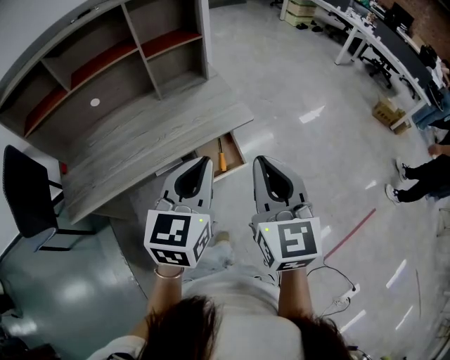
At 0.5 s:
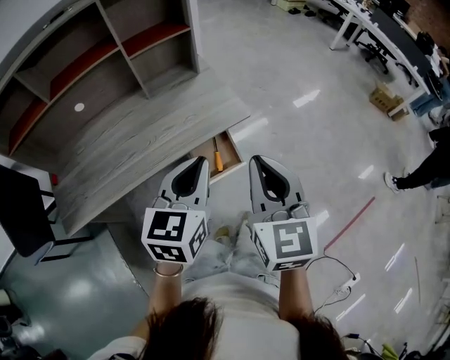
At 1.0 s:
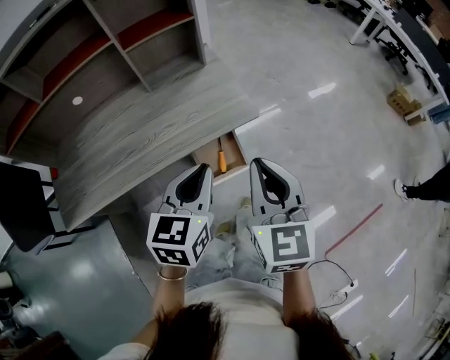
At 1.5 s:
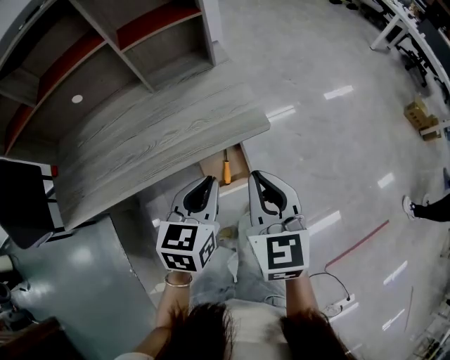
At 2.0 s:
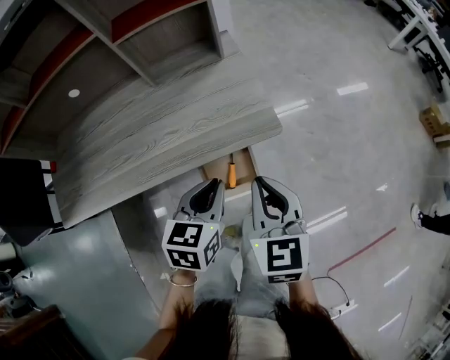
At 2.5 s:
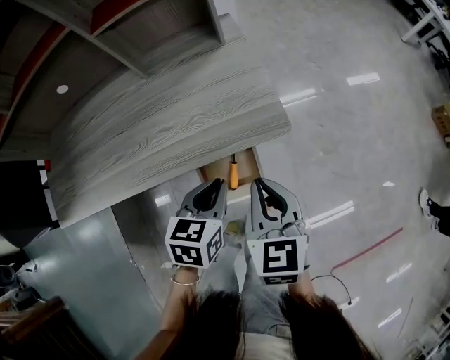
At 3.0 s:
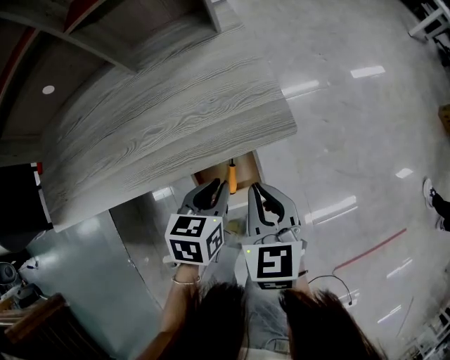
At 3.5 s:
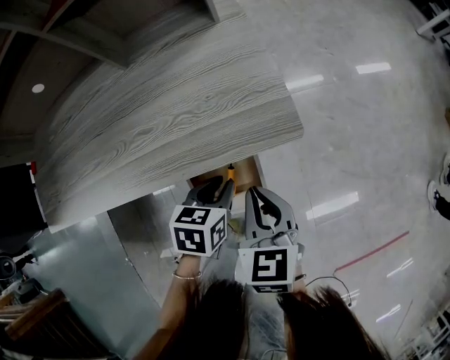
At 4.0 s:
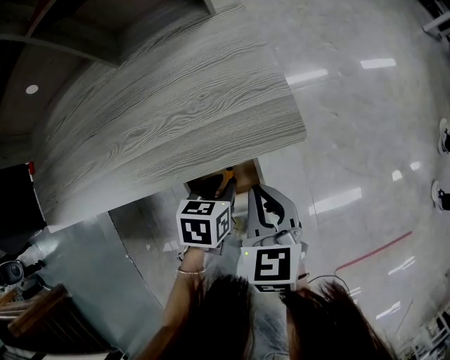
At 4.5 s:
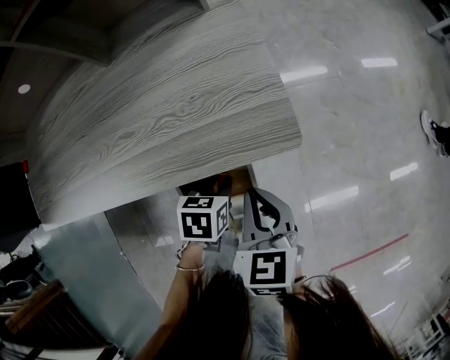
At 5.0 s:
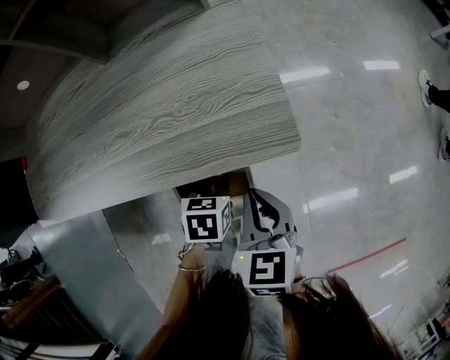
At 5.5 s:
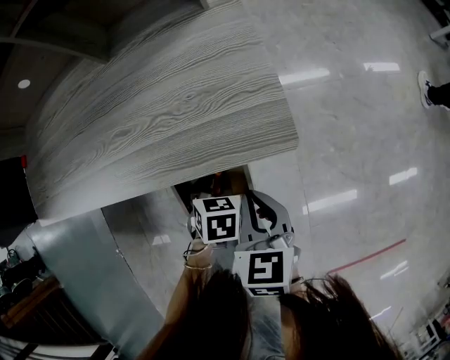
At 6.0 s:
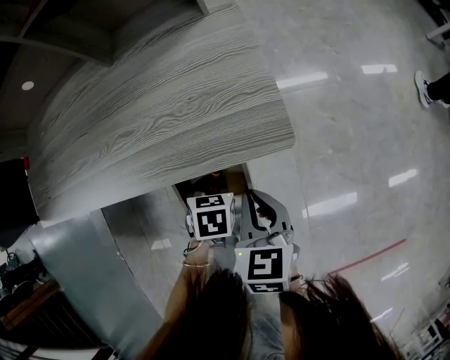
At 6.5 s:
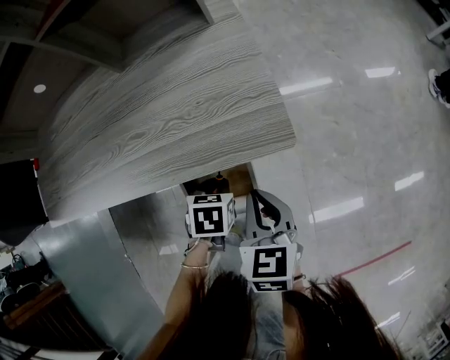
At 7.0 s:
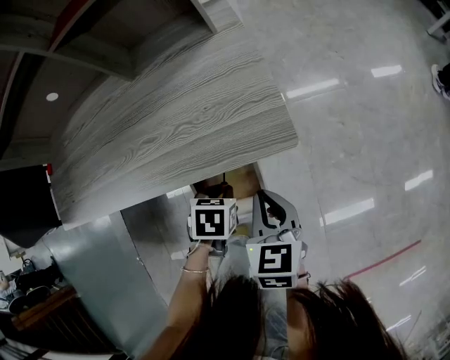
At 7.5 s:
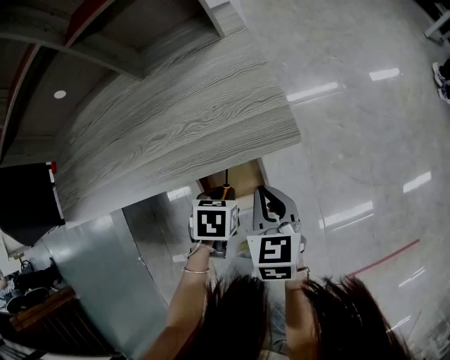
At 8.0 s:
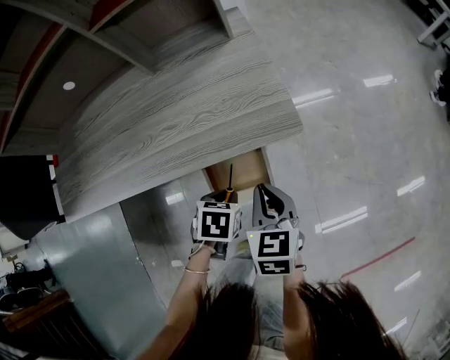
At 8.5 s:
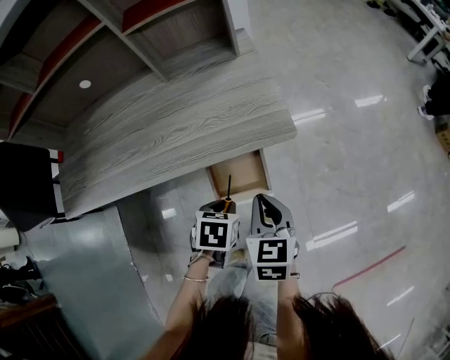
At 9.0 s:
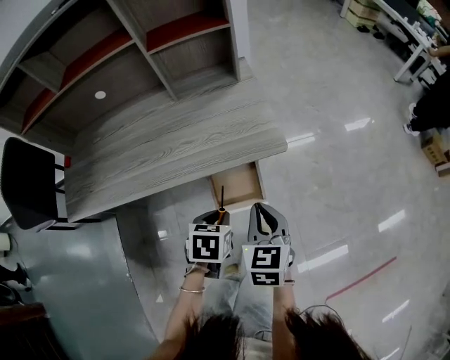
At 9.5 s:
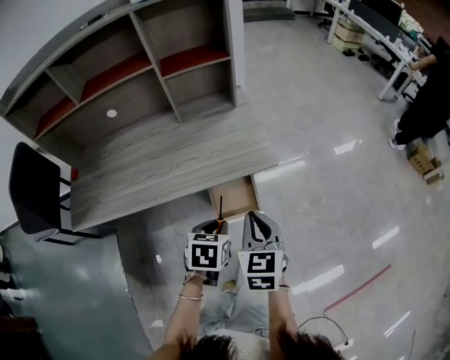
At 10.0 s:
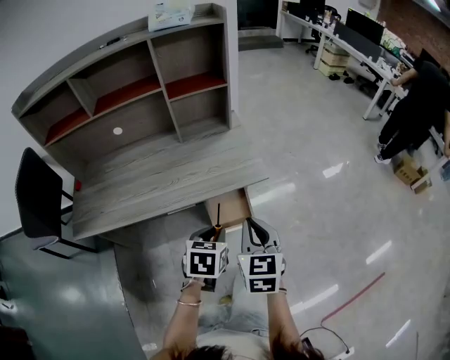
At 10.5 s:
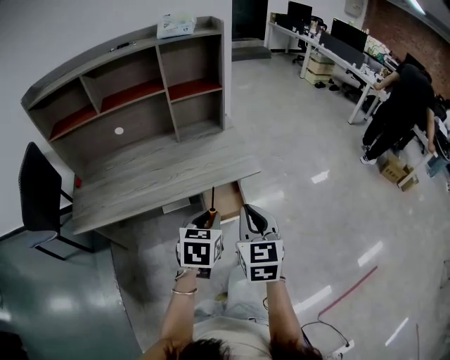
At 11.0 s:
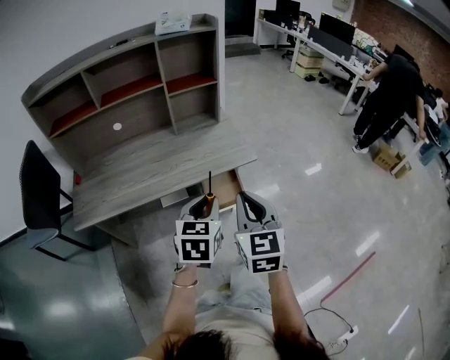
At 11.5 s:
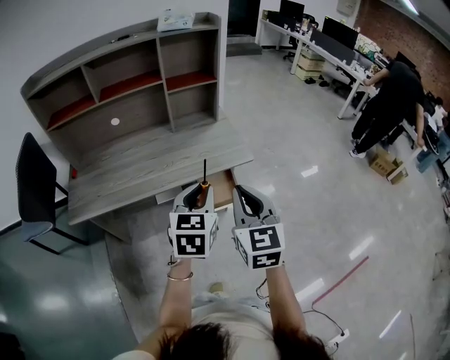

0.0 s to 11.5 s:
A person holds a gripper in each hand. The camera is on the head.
0.0 to 2.0 s: Both grippers travel together downward and forward, roughly 30 cm. The left gripper changes its angle by about 30 degrees, while the right gripper rotates about 20 degrees.
2.0 to 4.0 s: Both grippers move downward, roughly 20 cm. The left gripper rotates approximately 30 degrees, and opens.
6.0 to 7.5 s: The left gripper is displaced upward by roughly 5 cm.
7.5 to 9.5 s: The two grippers go some 20 cm upward and backward. The left gripper turns by about 20 degrees.
9.5 to 11.5 s: The right gripper heads upward and backward, covering approximately 20 cm; the left gripper shifts roughly 20 cm upward, and tilts its fingers about 30 degrees upward.

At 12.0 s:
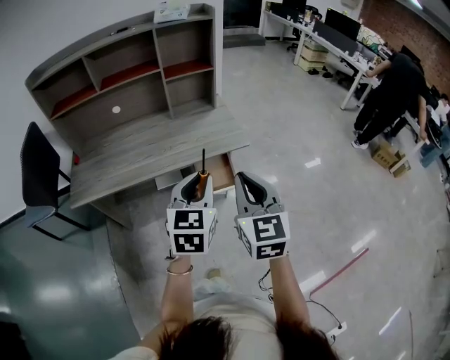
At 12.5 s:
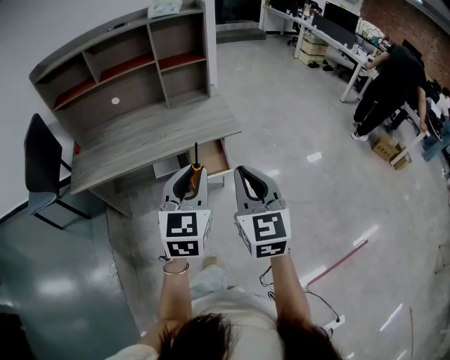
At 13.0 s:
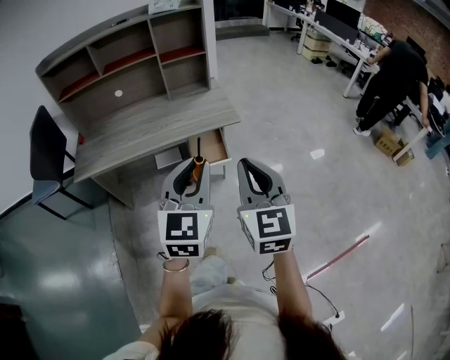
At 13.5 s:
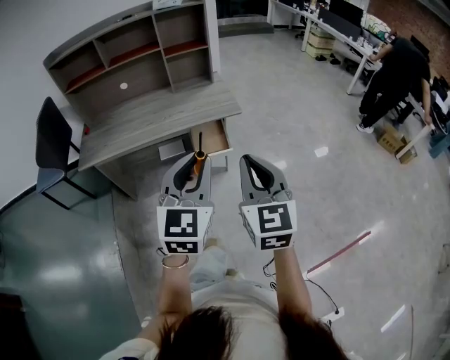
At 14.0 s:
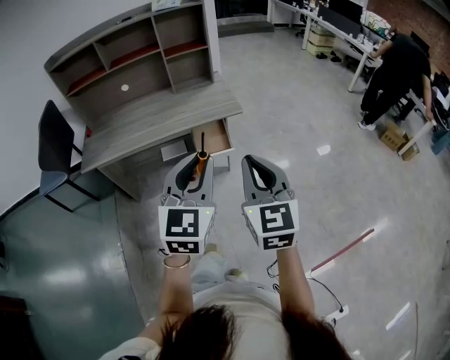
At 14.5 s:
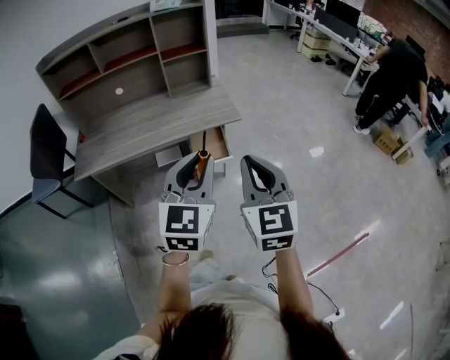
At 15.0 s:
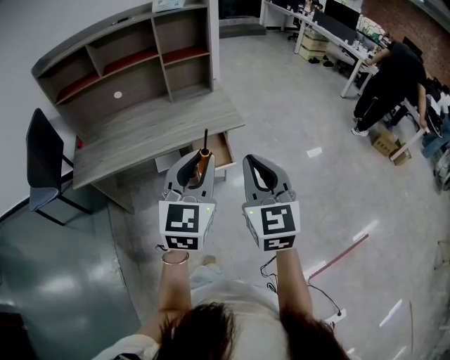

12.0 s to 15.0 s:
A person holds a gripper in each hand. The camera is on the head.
12.0 to 13.5 s: The left gripper shifts approximately 20 cm backward; the right gripper moves backward and to the right, roughly 20 cm.
13.5 to 15.0 s: The two grippers go approximately 10 cm forward.

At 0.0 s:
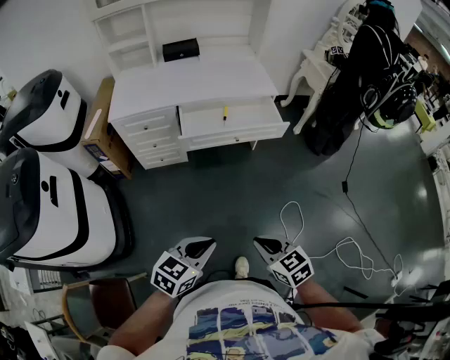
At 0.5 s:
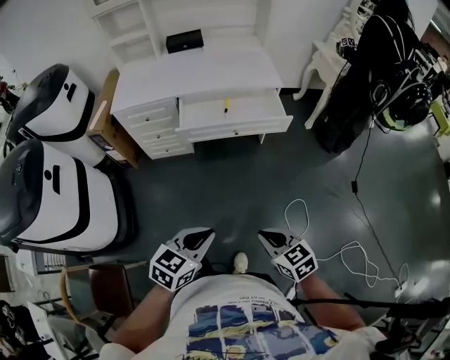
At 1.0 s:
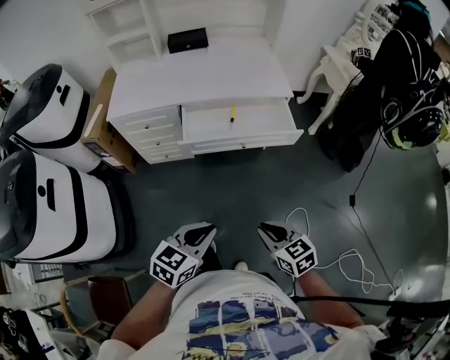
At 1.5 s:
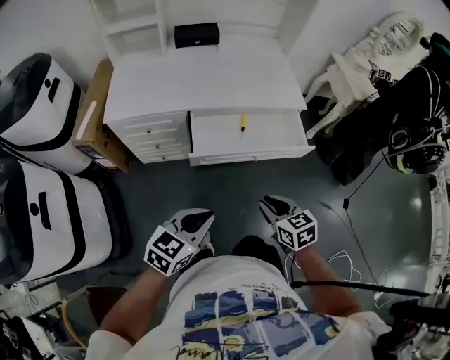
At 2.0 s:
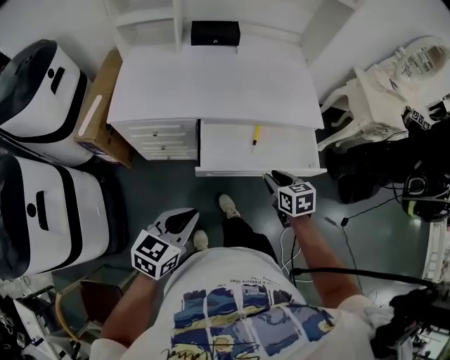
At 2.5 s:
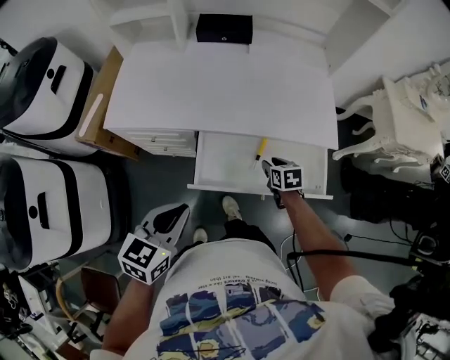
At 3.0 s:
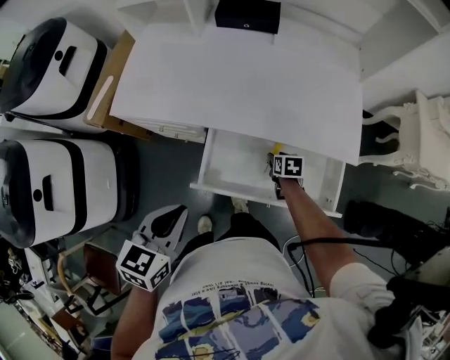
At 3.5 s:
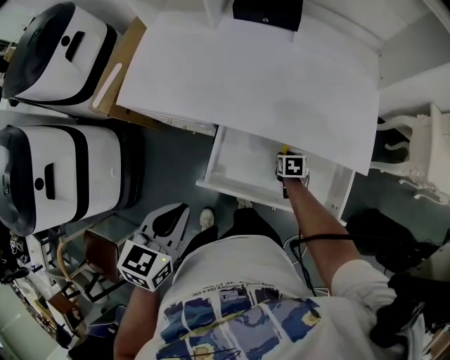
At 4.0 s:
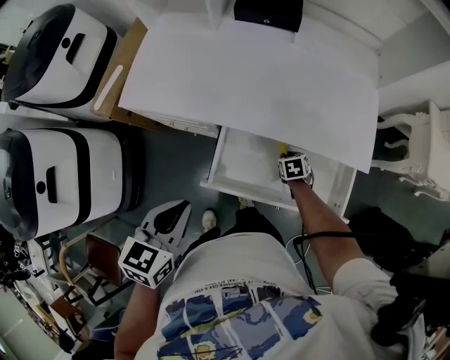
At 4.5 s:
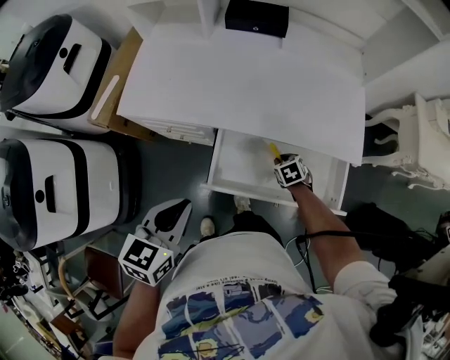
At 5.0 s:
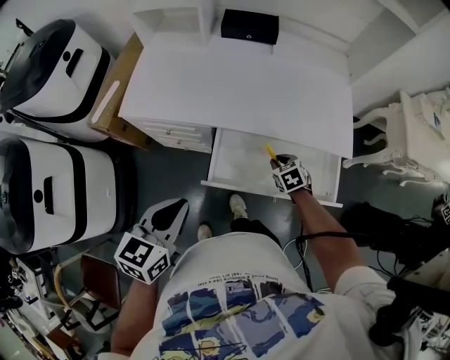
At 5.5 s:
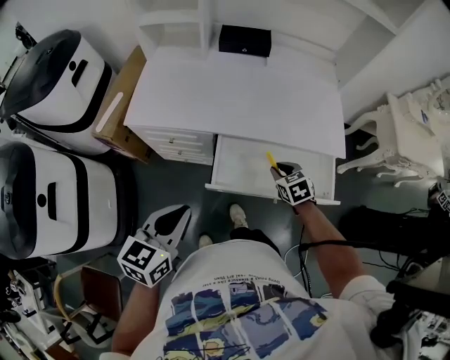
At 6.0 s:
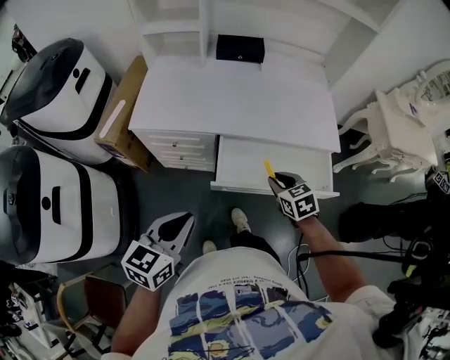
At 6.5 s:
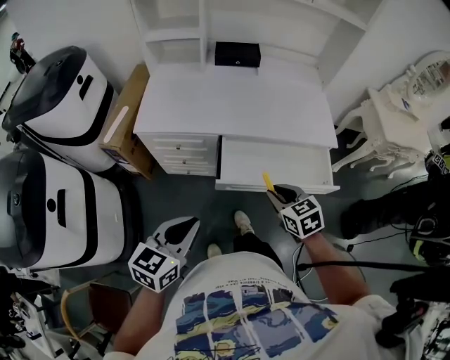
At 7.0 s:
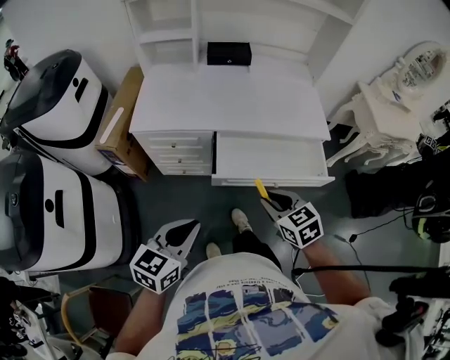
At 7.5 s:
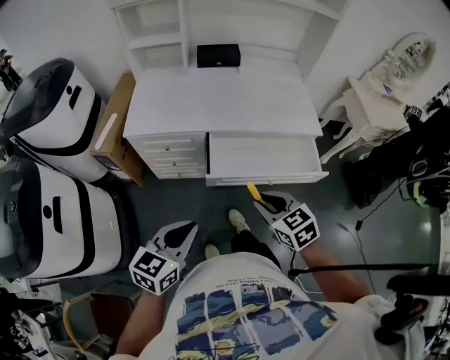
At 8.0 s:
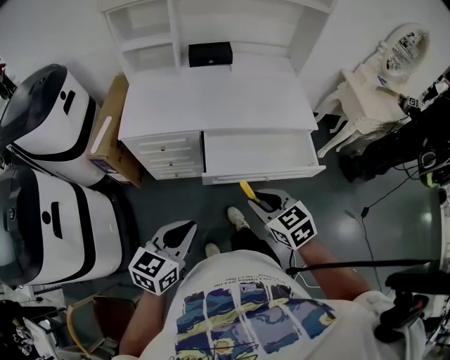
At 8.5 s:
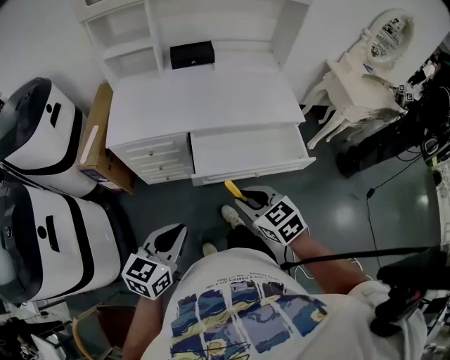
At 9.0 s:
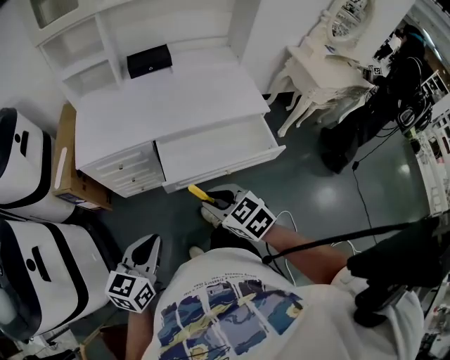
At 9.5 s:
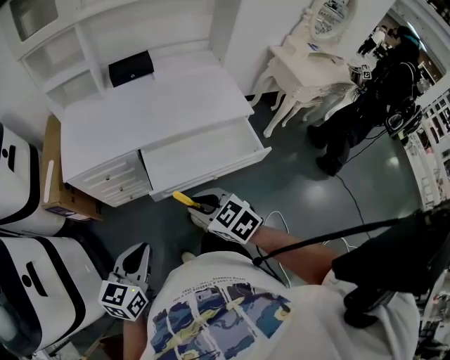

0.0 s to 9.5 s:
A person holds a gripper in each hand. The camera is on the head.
0.0 to 2.0 s: The right gripper travels forward by about 50 cm, and opens up. The left gripper shifts approximately 30 cm forward.
2.0 to 4.0 s: The right gripper goes approximately 30 cm downward and forward, and swivels approximately 30 degrees. The left gripper travels forward by approximately 15 cm, and swivels about 30 degrees.
4.0 to 5.5 s: The right gripper shifts approximately 20 cm upward. Meanwhile the left gripper is displaced backward by about 5 cm.
5.5 to 7.5 s: The right gripper goes some 25 cm backward and upward; the left gripper heads backward, covering some 10 cm.
7.5 to 9.5 s: The grippers make only small movements.

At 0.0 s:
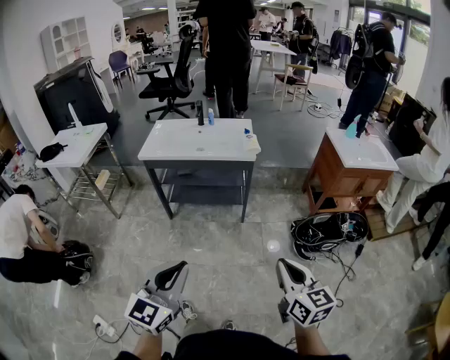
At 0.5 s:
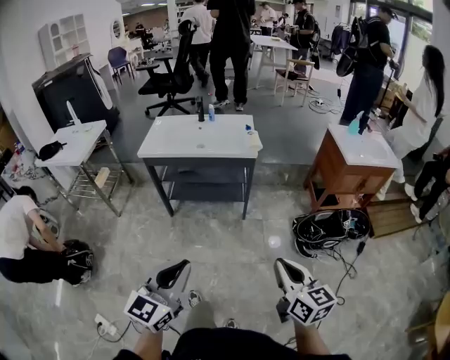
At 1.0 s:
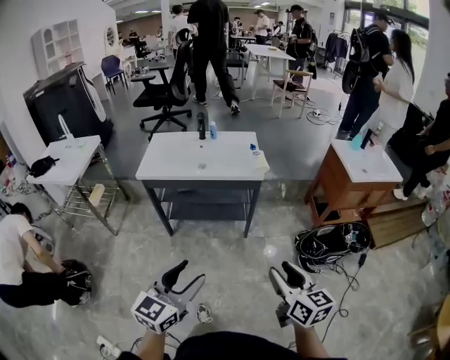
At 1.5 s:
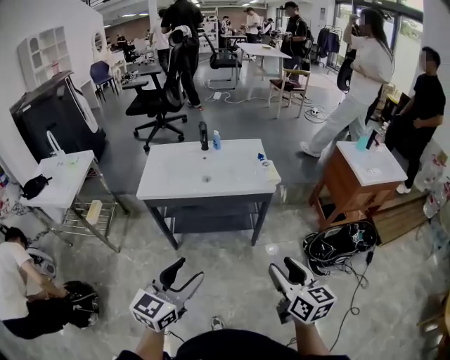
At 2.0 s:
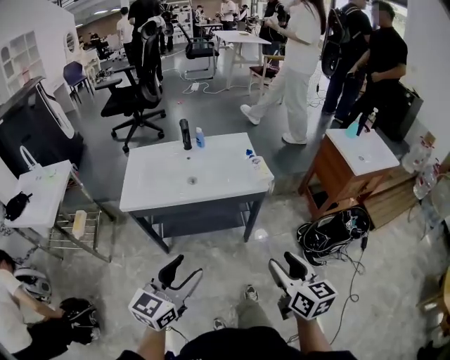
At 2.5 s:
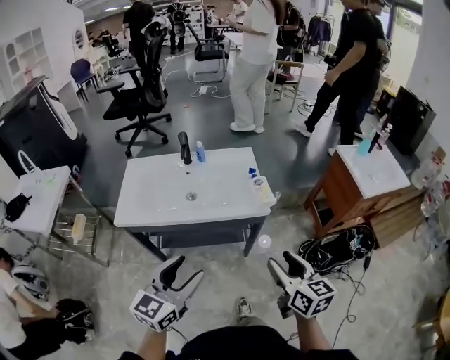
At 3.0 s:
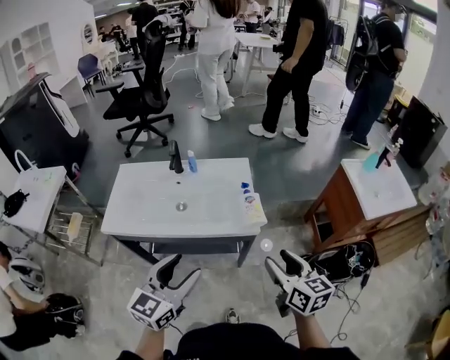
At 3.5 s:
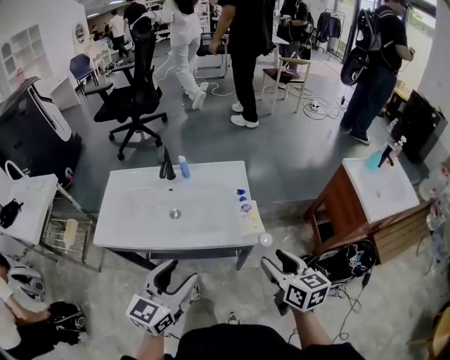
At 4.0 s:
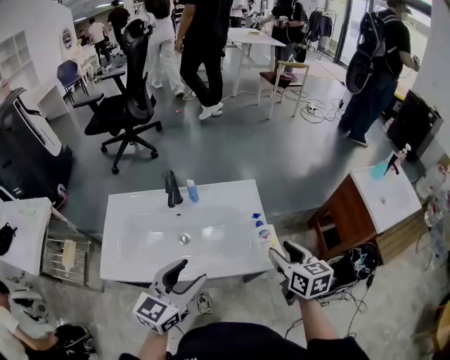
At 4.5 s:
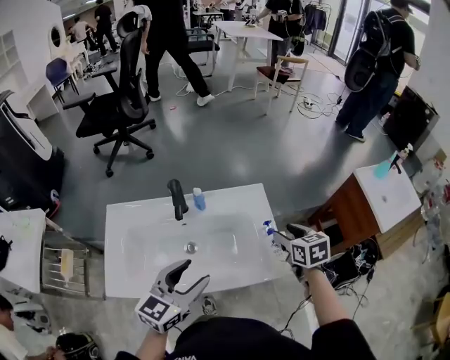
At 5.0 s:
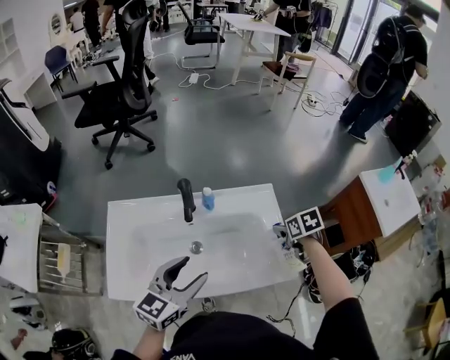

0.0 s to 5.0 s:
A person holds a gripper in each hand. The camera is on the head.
0.0 to 2.5 s: Both grippers are carried forward, approximately 40 cm. The left gripper opens up; the right gripper opens.
2.5 to 5.0 s: The two grippers go roughly 40 cm forward. The right gripper tilts its fingers roughly 50 degrees downward.
